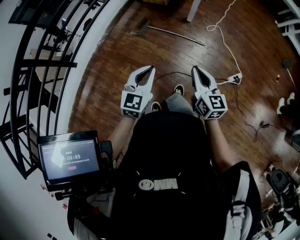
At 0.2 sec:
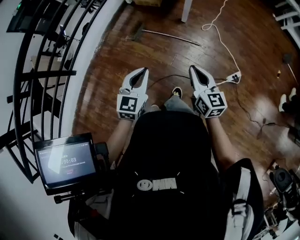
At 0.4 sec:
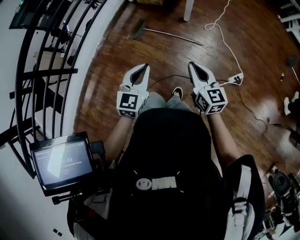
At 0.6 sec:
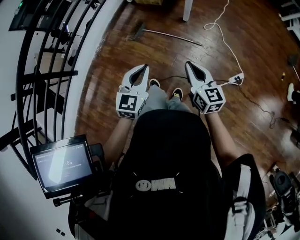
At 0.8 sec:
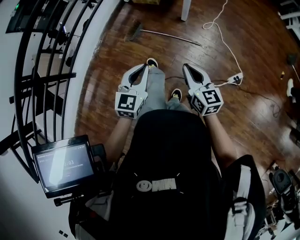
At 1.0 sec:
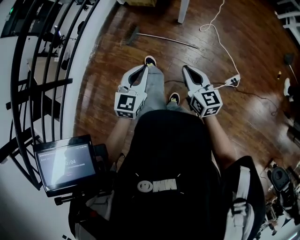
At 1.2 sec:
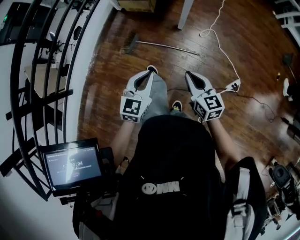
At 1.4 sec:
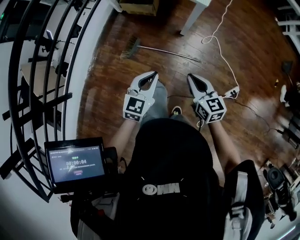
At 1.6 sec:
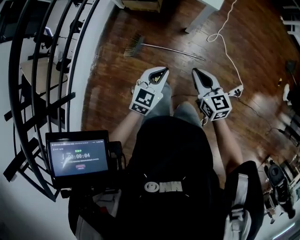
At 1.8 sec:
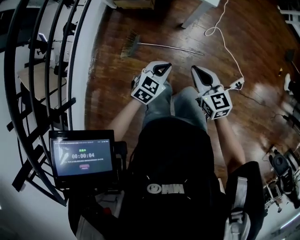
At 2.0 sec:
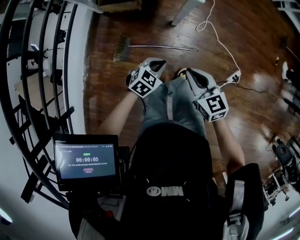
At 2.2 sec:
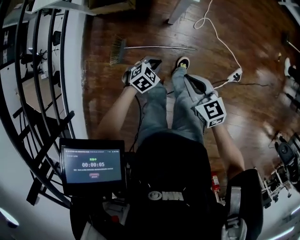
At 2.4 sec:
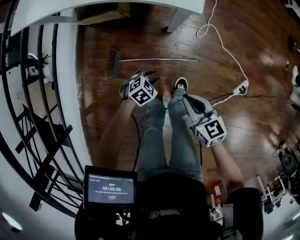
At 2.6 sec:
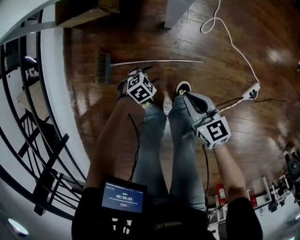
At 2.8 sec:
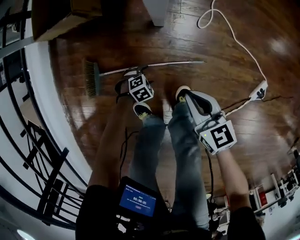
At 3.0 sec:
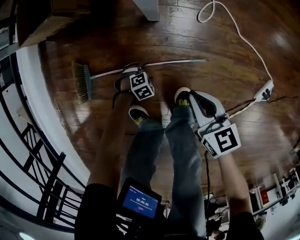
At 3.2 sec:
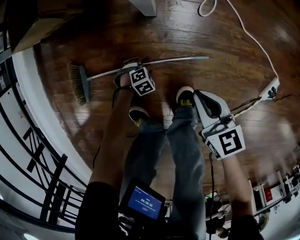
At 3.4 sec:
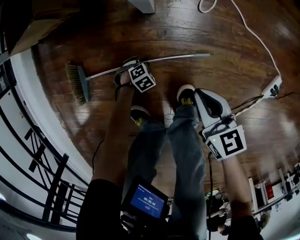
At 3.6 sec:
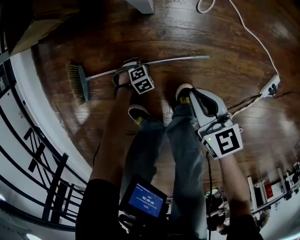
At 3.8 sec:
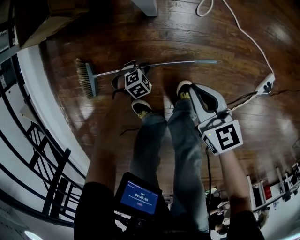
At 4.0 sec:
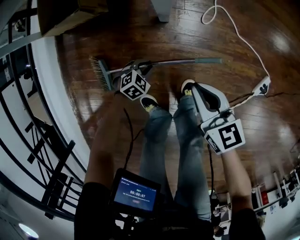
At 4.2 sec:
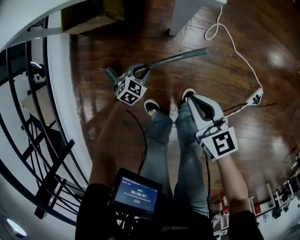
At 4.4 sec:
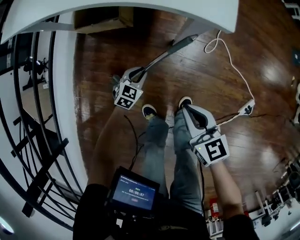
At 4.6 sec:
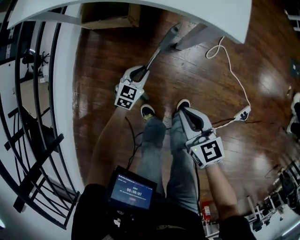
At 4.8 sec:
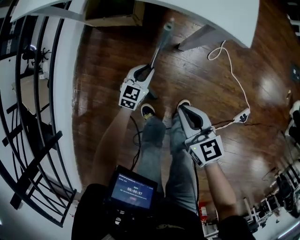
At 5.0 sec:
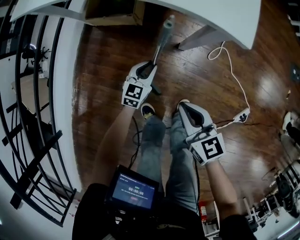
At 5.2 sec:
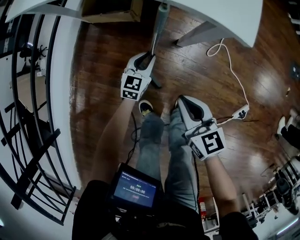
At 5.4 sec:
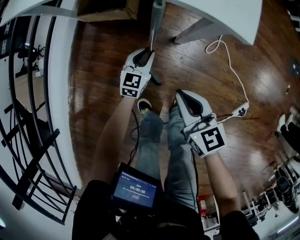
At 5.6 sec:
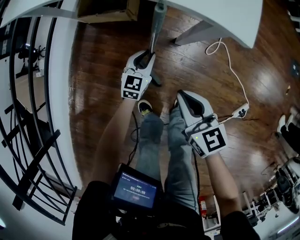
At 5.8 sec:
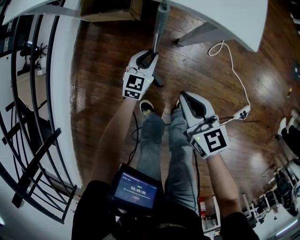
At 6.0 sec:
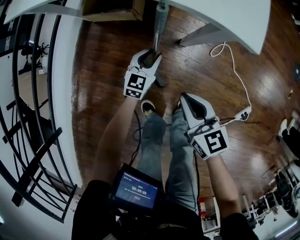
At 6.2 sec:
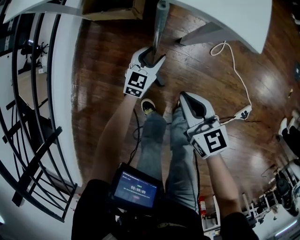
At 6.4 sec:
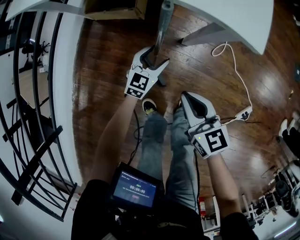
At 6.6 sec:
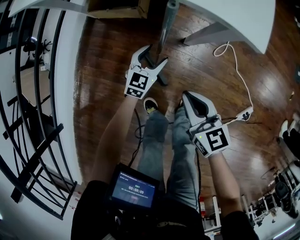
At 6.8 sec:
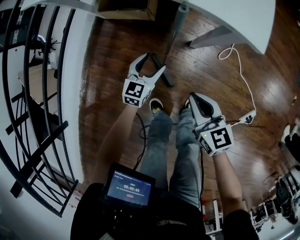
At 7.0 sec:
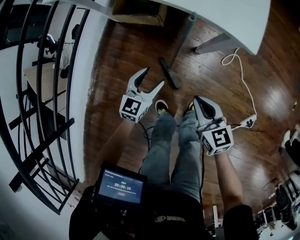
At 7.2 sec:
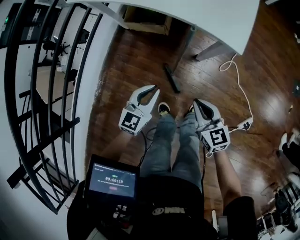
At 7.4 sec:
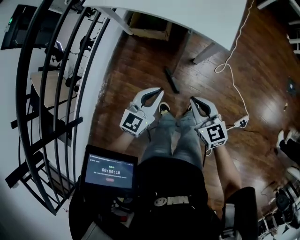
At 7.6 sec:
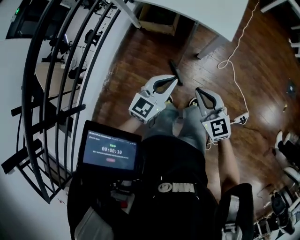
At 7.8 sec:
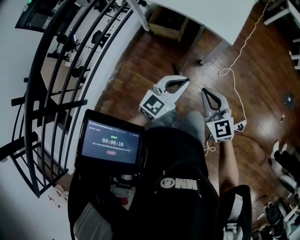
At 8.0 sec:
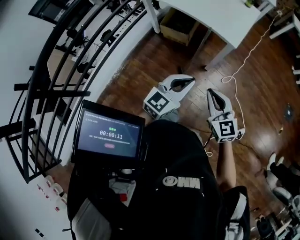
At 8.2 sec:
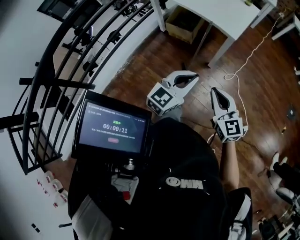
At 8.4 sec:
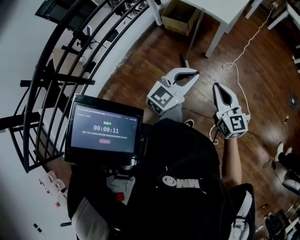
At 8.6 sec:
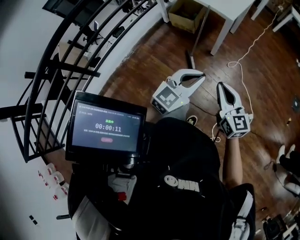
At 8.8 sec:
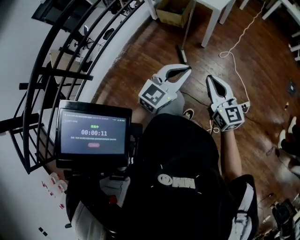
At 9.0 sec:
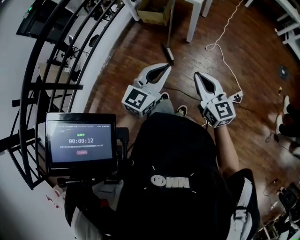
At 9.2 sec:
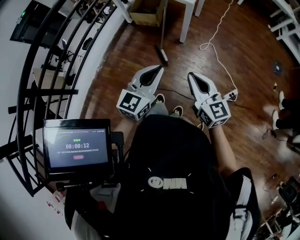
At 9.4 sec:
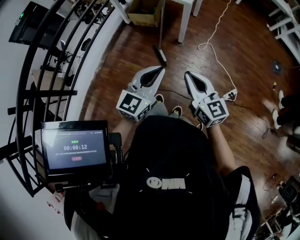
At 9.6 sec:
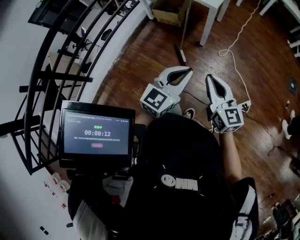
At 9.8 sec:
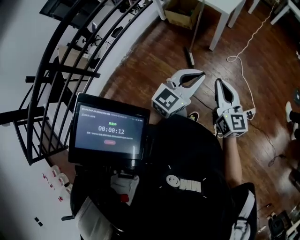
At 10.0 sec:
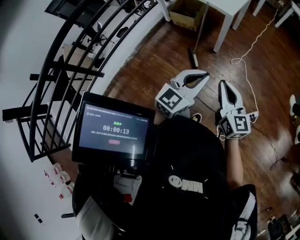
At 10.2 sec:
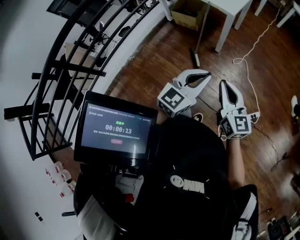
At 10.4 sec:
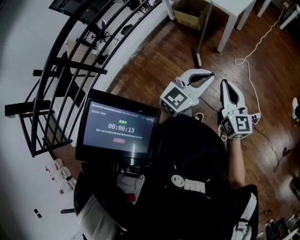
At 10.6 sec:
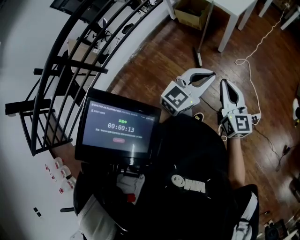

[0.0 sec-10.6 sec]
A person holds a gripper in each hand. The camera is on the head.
0.0 sec to 1.6 sec: The grippers both shift forward by some 35 cm. The left gripper swivels approximately 20 degrees.
1.6 sec to 3.0 sec: The right gripper goes approximately 40 cm downward, while the left gripper travels downward by roughly 70 cm, angles its fingers downward, by roughly 50 degrees, and opens its fingers.
3.0 sec to 4.6 sec: Both grippers move upward, approximately 30 cm. The left gripper angles its fingers upward, by about 40 degrees, and closes its fingers.
4.6 sec to 6.0 sec: The left gripper travels forward by approximately 5 cm; the right gripper shifts by some 5 cm.
6.0 sec to 7.6 sec: The left gripper heads upward and backward, covering approximately 50 cm, and closes its fingers; the right gripper goes approximately 30 cm upward and backward, and changes its angle by about 30 degrees.
7.6 sec to 9.0 sec: The right gripper moves backward and to the right, some 25 cm. Meanwhile the left gripper shifts approximately 25 cm backward.
9.0 sec to 10.6 sec: The left gripper is displaced to the right by roughly 5 cm.

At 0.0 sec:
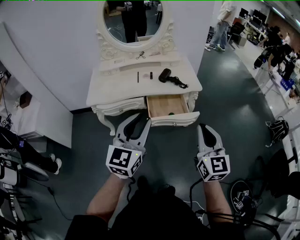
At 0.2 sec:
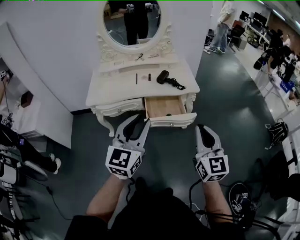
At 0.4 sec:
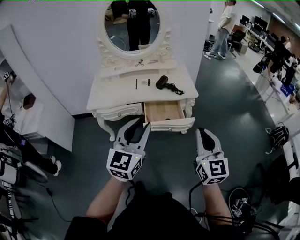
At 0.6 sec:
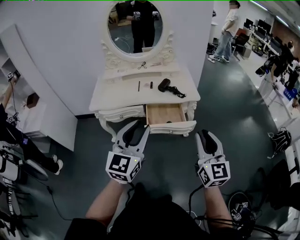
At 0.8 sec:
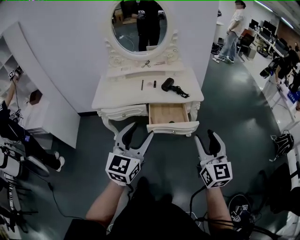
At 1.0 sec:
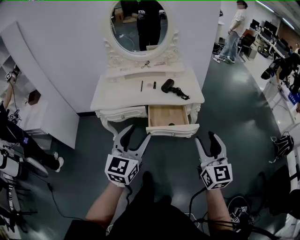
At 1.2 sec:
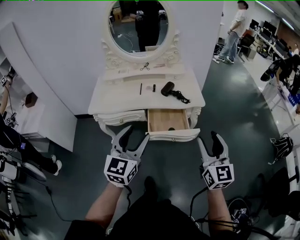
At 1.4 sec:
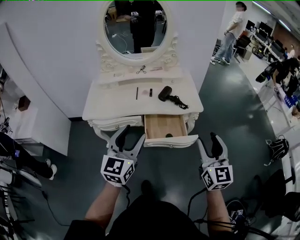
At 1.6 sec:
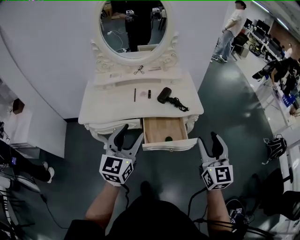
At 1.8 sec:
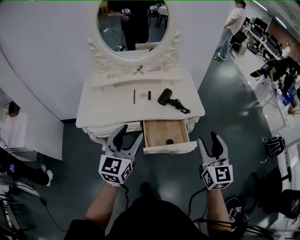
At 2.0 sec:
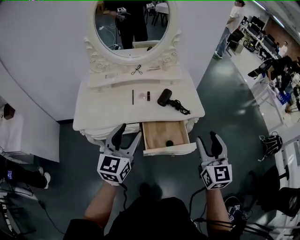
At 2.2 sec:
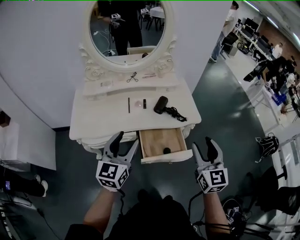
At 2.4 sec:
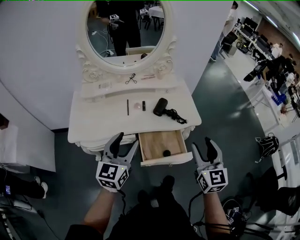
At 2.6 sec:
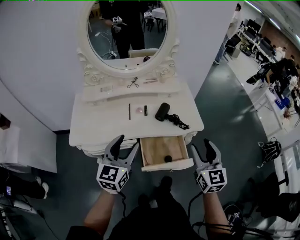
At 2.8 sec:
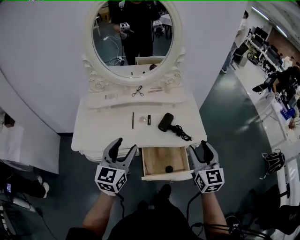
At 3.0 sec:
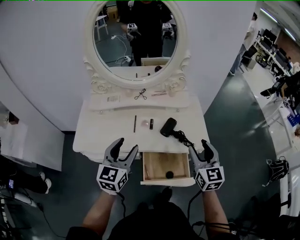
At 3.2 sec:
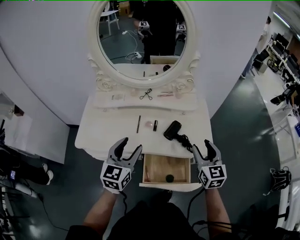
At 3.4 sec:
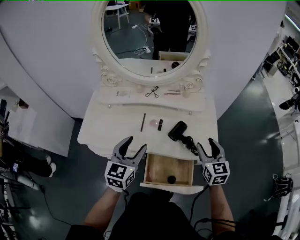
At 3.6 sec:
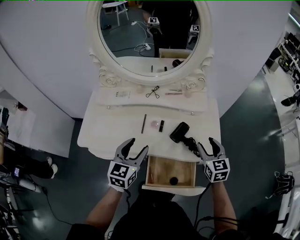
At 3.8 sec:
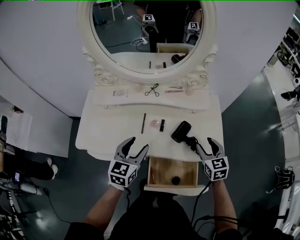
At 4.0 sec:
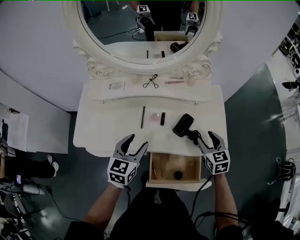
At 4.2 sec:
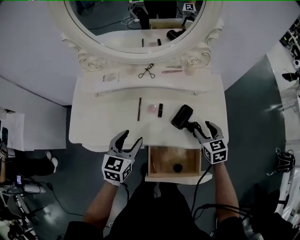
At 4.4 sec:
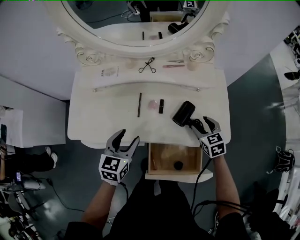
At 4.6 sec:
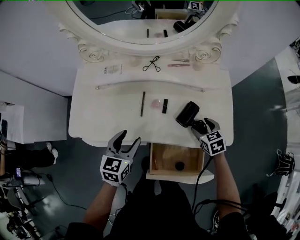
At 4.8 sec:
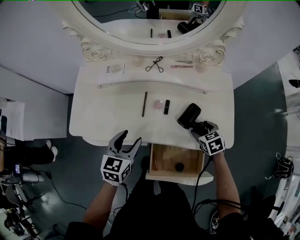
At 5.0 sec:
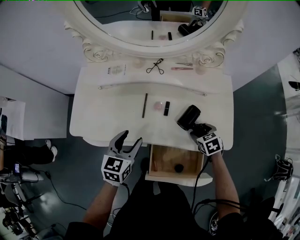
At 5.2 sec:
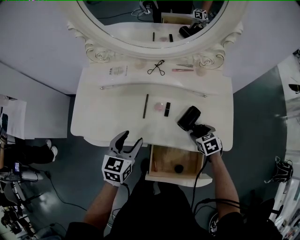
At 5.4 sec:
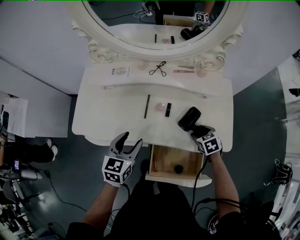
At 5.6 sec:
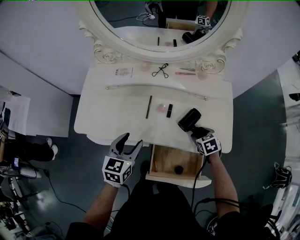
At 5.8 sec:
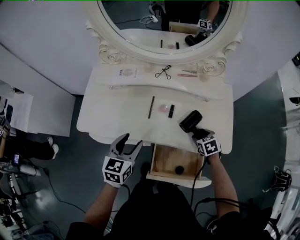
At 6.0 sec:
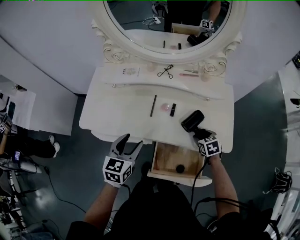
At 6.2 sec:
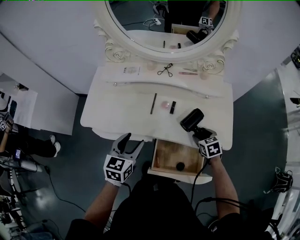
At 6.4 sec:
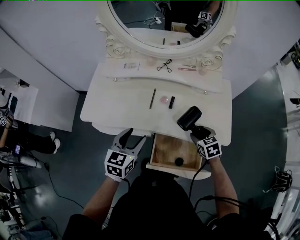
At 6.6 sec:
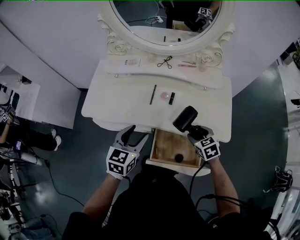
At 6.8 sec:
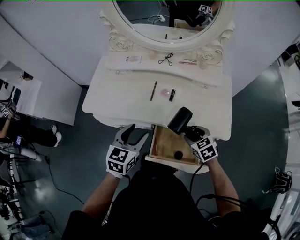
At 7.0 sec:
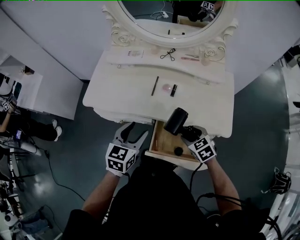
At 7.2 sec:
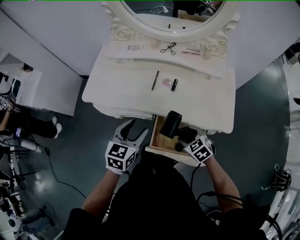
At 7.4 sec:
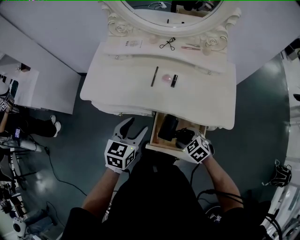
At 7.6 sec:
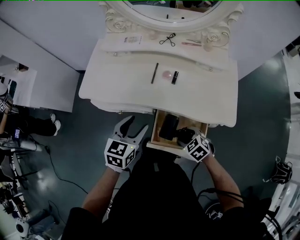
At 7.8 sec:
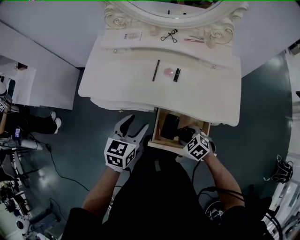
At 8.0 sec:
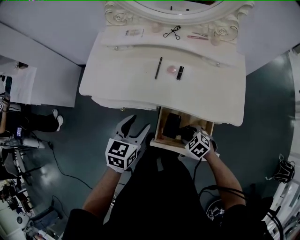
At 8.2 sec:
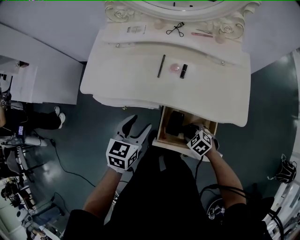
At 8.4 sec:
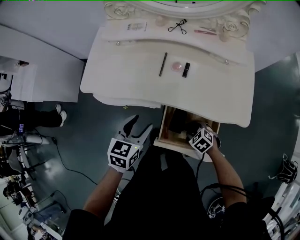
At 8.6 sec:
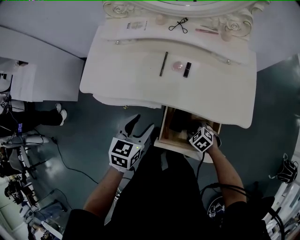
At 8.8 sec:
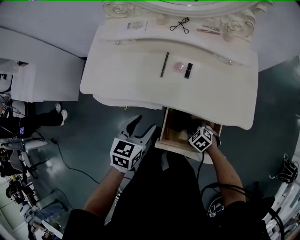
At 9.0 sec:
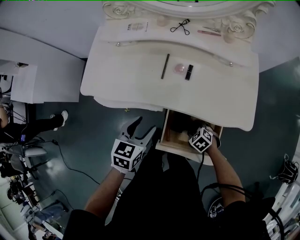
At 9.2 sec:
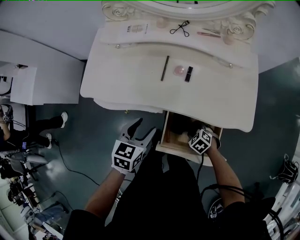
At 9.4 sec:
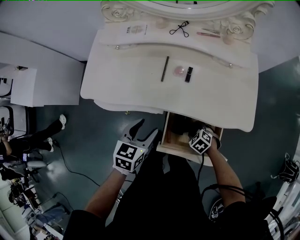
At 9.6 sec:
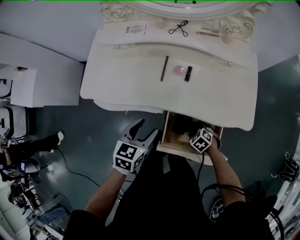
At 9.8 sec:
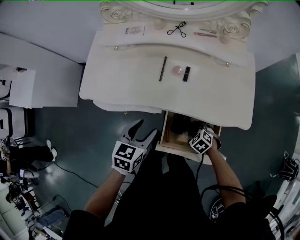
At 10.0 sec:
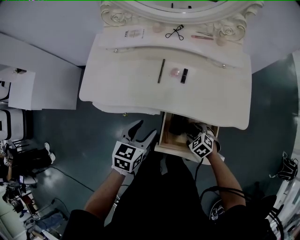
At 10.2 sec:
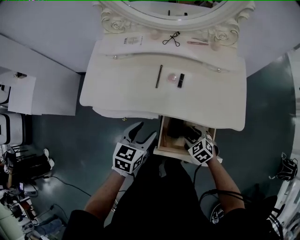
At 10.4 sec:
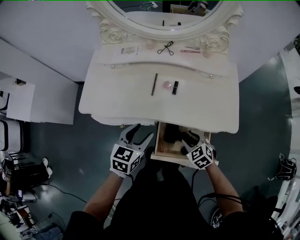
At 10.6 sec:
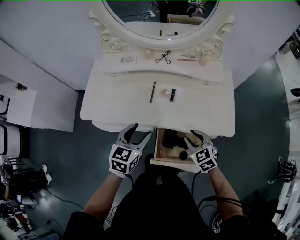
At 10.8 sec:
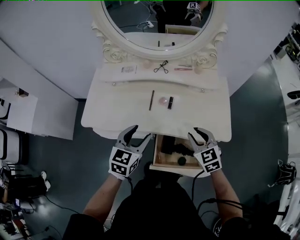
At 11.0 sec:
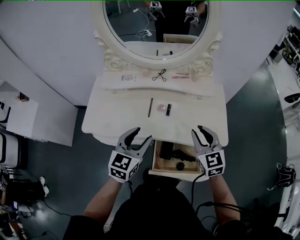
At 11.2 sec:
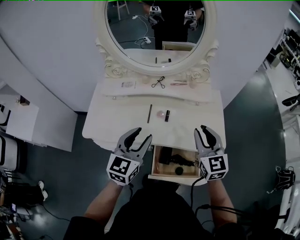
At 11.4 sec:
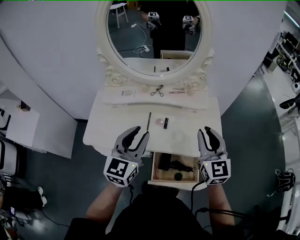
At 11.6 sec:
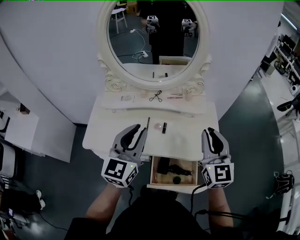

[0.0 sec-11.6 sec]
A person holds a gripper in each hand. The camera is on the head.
0.0 sec to 1.4 sec: Both grippers move forward, some 10 cm. The left gripper opens up. The right gripper opens up.
1.4 sec to 2.8 sec: The right gripper shifts roughly 25 cm forward; the left gripper moves forward and to the left, some 25 cm.
2.8 sec to 4.4 sec: The right gripper is displaced downward and forward by roughly 35 cm, and angles its fingers downward, by some 40 degrees, while the left gripper heads downward and forward, covering some 25 cm, and rotates roughly 20 degrees.
4.4 sec to 5.8 sec: The left gripper moves roughly 5 cm. The right gripper goes some 5 cm downward.
5.8 sec to 7.2 sec: The left gripper goes some 10 cm backward. The right gripper travels backward and to the left by some 20 cm, and swivels about 30 degrees.
7.2 sec to 8.8 sec: The left gripper is displaced downward by roughly 10 cm. The right gripper goes about 20 cm downward.
8.8 sec to 10.2 sec: The right gripper shifts about 10 cm upward.
10.2 sec to 11.6 sec: The right gripper shifts some 50 cm upward, points its fingers roughly 60 degrees further upward, and closes up. The left gripper is displaced upward by approximately 30 cm, tilts its fingers approximately 40 degrees upward, and closes its fingers.

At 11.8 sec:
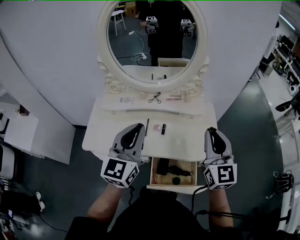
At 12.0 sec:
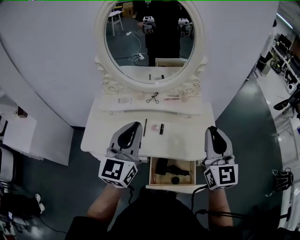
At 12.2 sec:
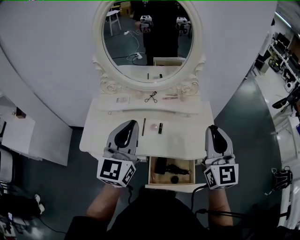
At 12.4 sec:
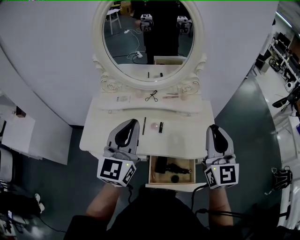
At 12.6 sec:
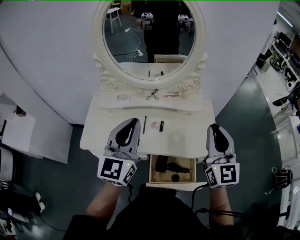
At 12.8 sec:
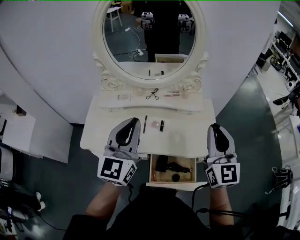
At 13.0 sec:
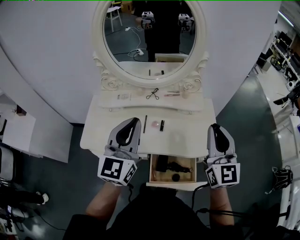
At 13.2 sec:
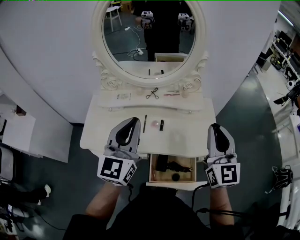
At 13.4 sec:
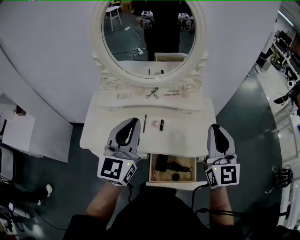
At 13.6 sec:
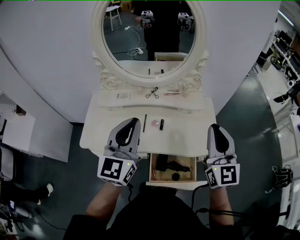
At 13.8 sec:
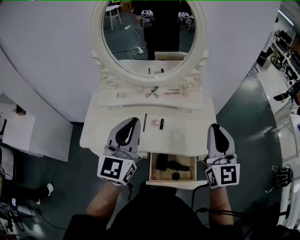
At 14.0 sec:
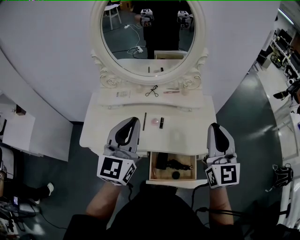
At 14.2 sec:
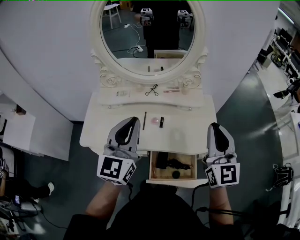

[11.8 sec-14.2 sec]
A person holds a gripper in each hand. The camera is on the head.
11.8 sec to 13.0 sec: There are only small adjustments of the grippers.
13.0 sec to 14.2 sec: Both grippers stay put.
